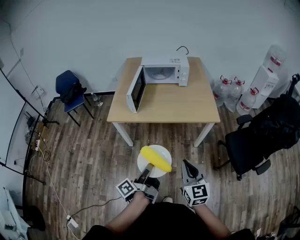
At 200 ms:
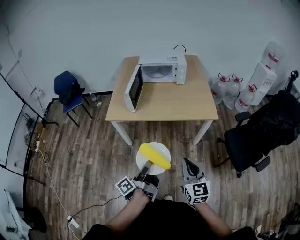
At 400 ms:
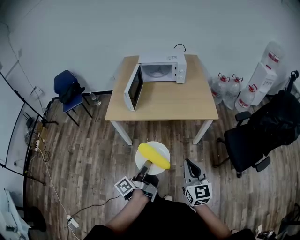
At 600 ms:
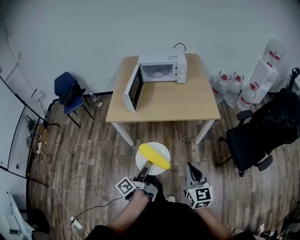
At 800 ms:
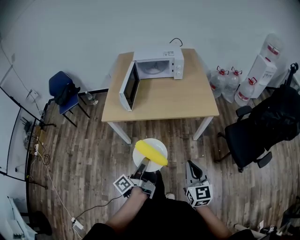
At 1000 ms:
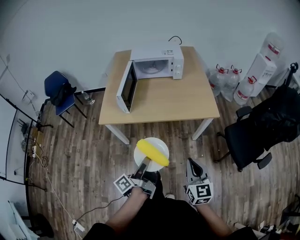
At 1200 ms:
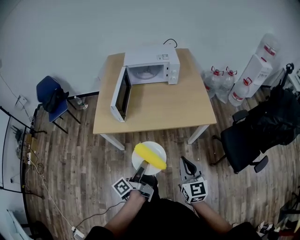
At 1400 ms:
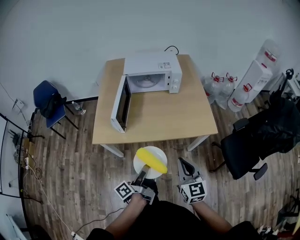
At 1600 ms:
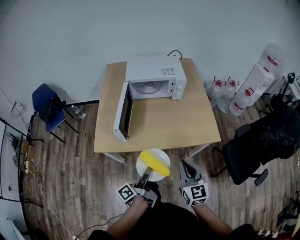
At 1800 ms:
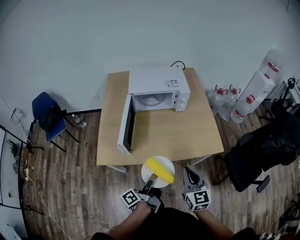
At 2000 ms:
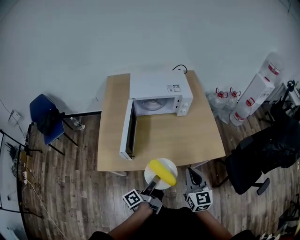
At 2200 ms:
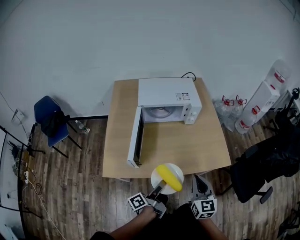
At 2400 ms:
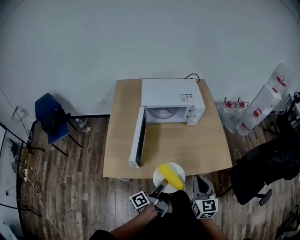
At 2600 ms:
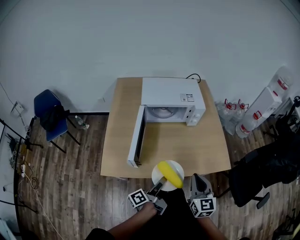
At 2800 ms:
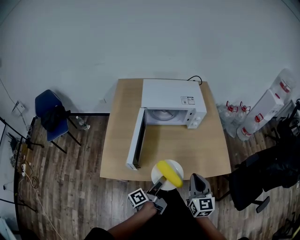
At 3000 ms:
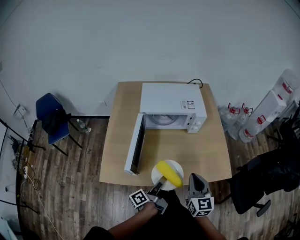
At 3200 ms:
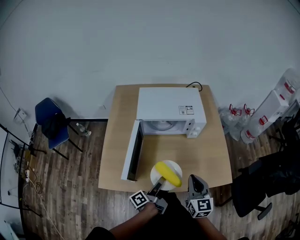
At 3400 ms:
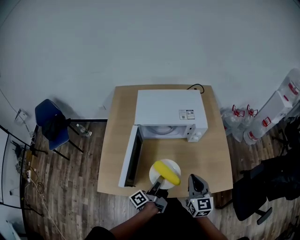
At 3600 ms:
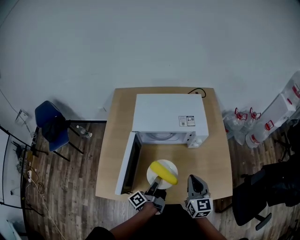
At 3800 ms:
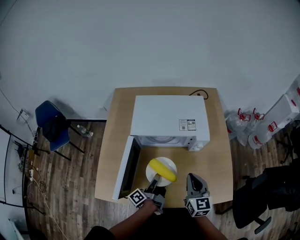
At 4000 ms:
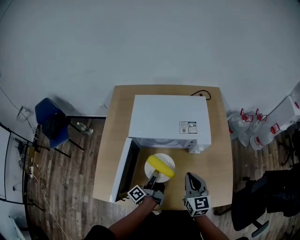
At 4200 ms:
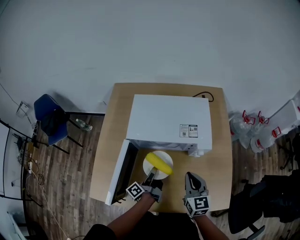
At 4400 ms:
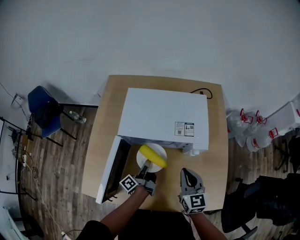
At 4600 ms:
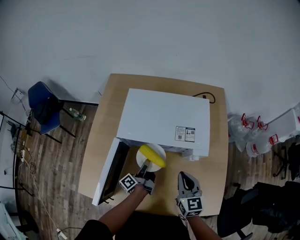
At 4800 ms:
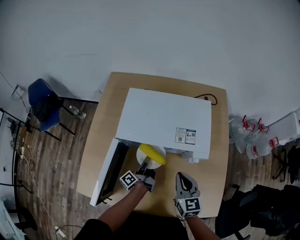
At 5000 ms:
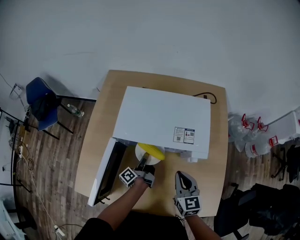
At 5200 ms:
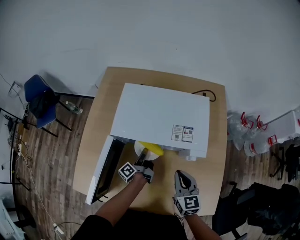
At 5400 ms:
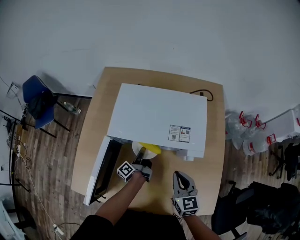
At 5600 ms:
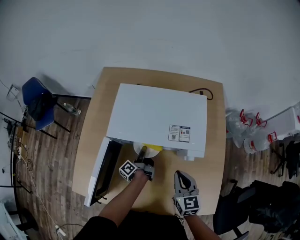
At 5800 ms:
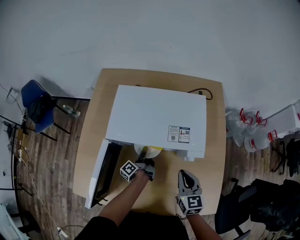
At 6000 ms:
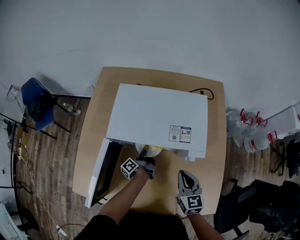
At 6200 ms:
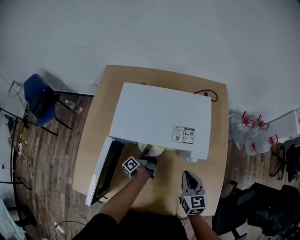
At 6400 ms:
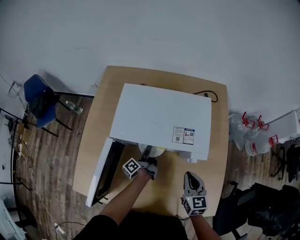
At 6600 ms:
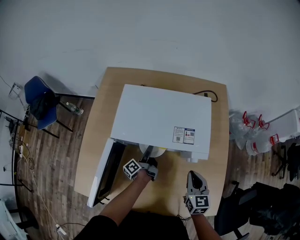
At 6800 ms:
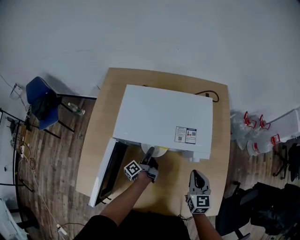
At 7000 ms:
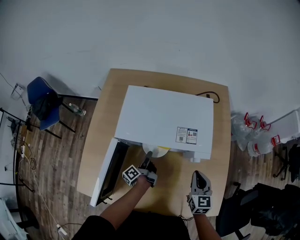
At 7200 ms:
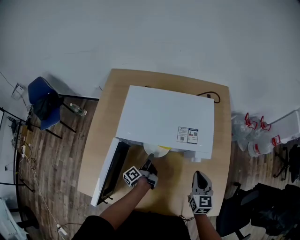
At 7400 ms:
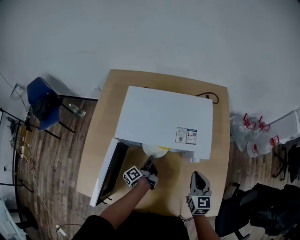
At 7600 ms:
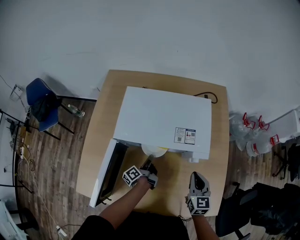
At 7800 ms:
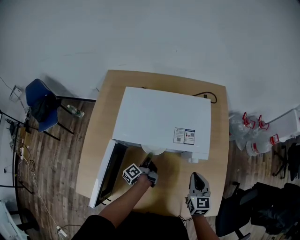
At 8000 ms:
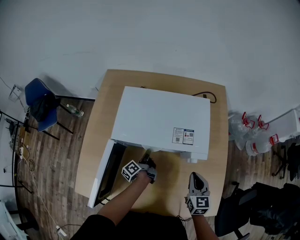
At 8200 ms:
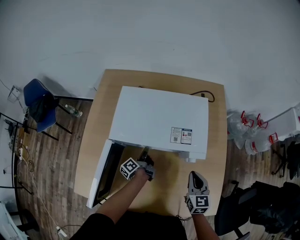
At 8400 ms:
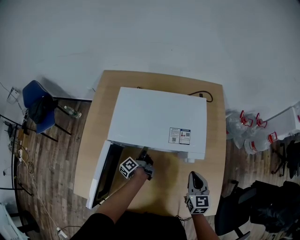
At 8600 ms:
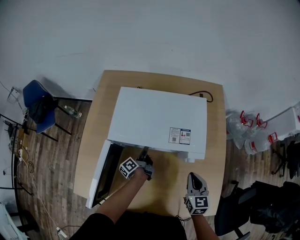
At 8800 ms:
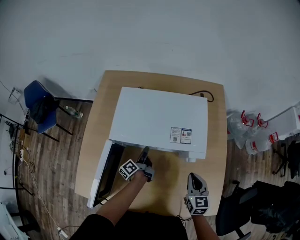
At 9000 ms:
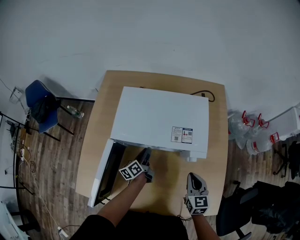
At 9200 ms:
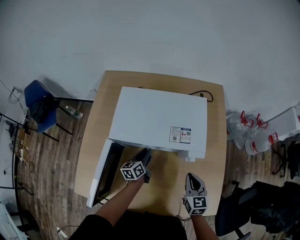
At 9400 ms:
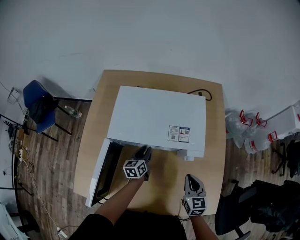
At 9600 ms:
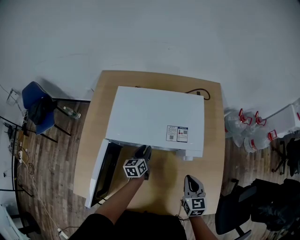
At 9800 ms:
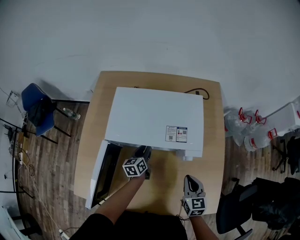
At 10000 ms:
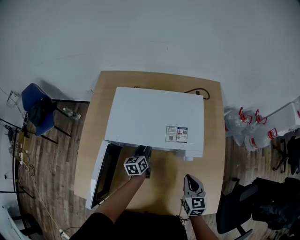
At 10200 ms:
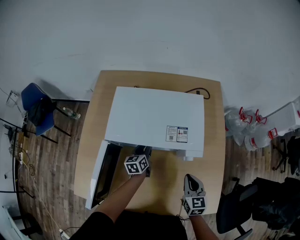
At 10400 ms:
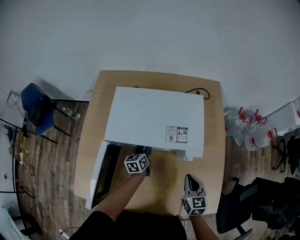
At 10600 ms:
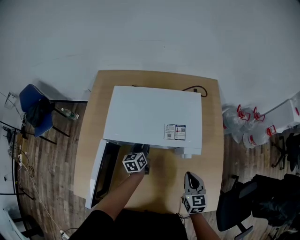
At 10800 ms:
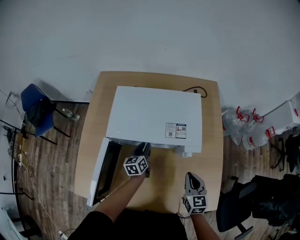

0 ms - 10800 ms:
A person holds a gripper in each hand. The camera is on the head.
0 ms - 1600 ms: The right gripper moves some 25 cm.
1600 ms - 3000 ms: The right gripper moves about 15 cm.
3000 ms - 4600 ms: The right gripper shifts by roughly 25 cm.
4600 ms - 6200 ms: The right gripper changes place by roughly 5 cm.

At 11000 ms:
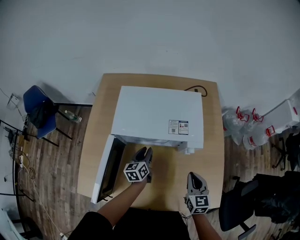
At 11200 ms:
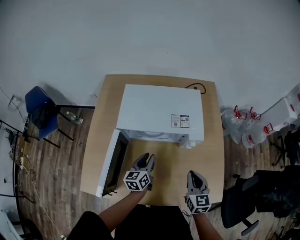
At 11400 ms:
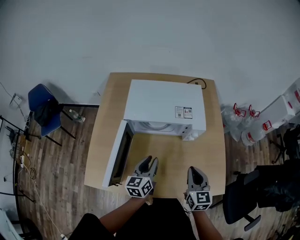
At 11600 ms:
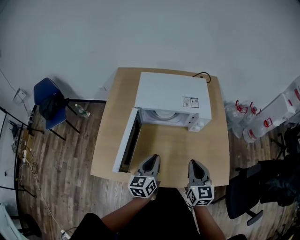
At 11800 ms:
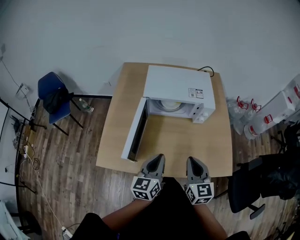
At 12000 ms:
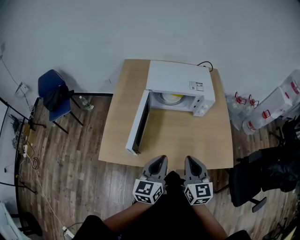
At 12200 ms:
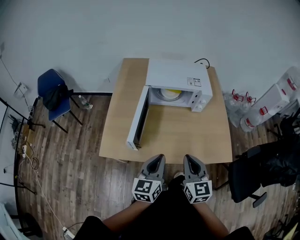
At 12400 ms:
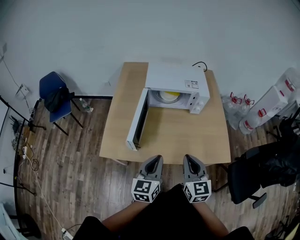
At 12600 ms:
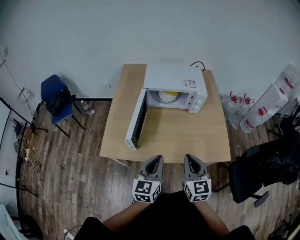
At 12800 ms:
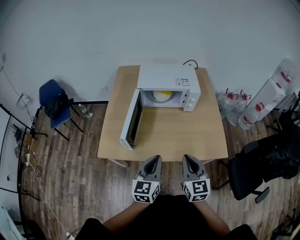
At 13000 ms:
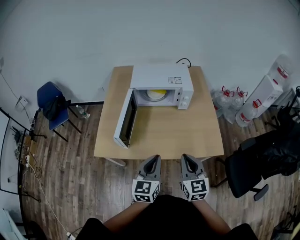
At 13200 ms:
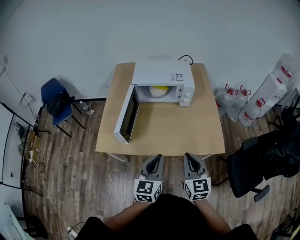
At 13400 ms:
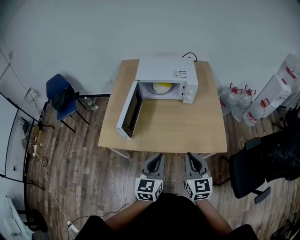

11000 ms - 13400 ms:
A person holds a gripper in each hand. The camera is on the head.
11000 ms - 12200 ms: The right gripper changes place by roughly 35 cm.
12200 ms - 13400 ms: The right gripper shifts by approximately 15 cm.

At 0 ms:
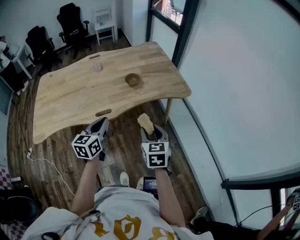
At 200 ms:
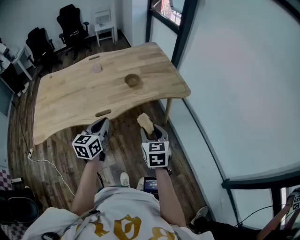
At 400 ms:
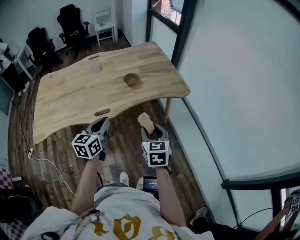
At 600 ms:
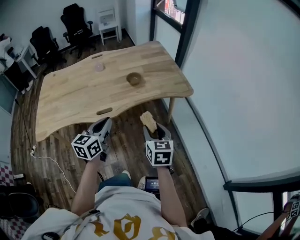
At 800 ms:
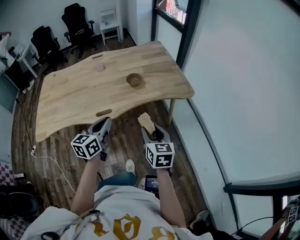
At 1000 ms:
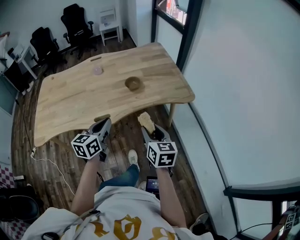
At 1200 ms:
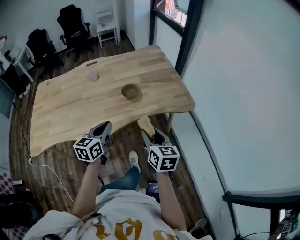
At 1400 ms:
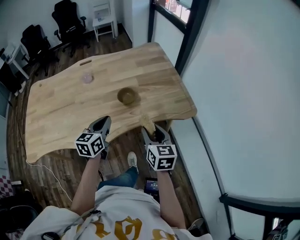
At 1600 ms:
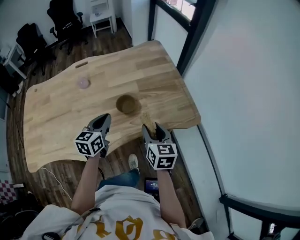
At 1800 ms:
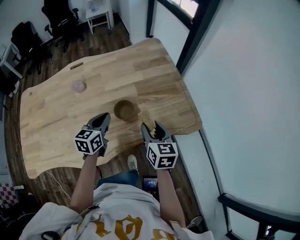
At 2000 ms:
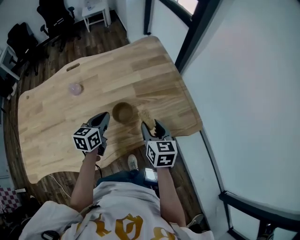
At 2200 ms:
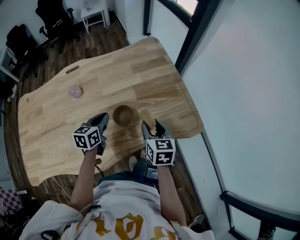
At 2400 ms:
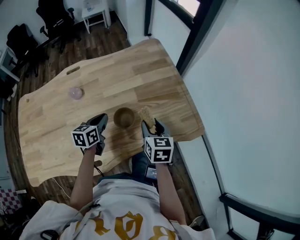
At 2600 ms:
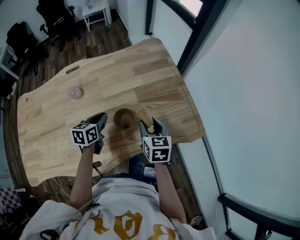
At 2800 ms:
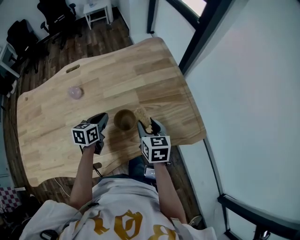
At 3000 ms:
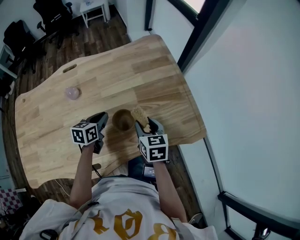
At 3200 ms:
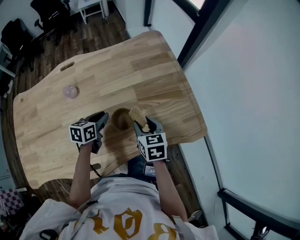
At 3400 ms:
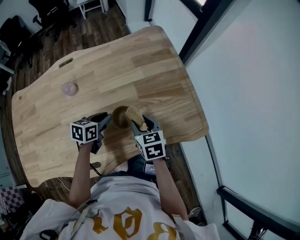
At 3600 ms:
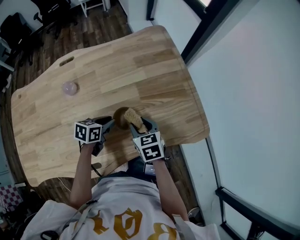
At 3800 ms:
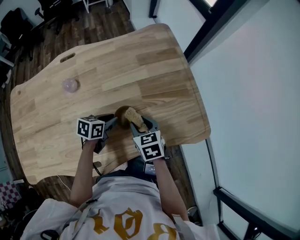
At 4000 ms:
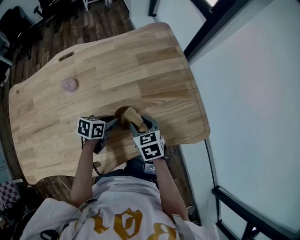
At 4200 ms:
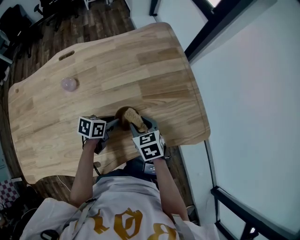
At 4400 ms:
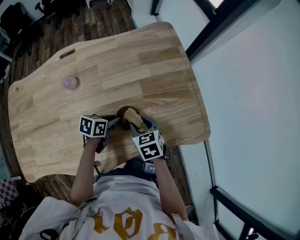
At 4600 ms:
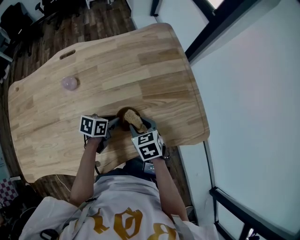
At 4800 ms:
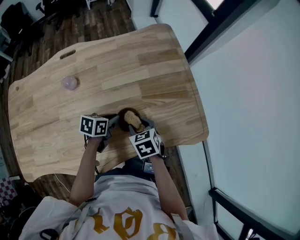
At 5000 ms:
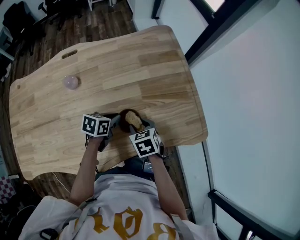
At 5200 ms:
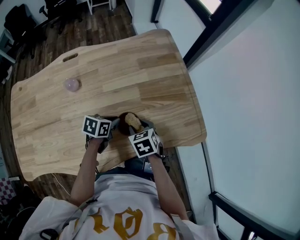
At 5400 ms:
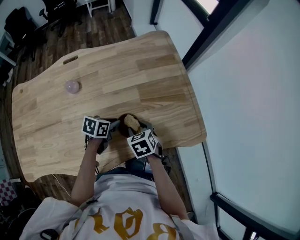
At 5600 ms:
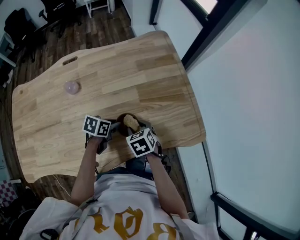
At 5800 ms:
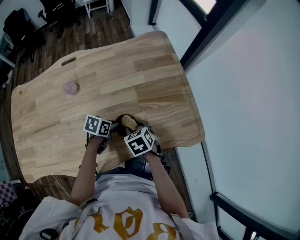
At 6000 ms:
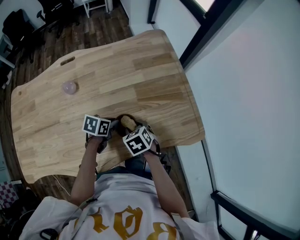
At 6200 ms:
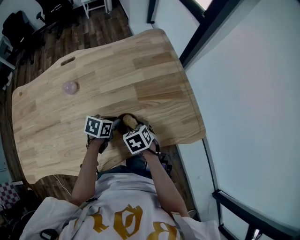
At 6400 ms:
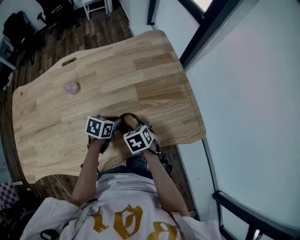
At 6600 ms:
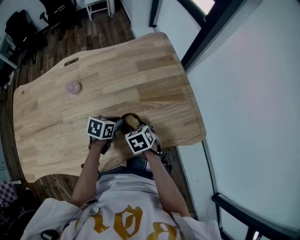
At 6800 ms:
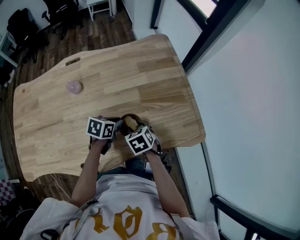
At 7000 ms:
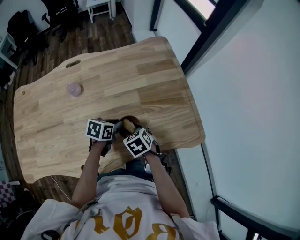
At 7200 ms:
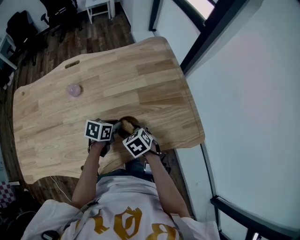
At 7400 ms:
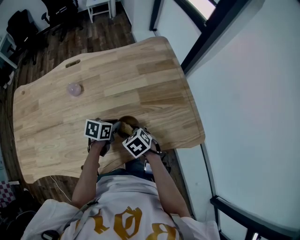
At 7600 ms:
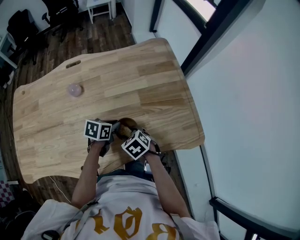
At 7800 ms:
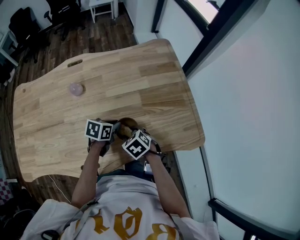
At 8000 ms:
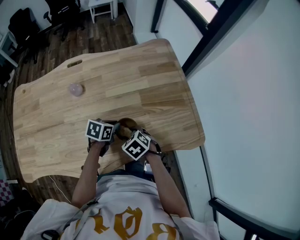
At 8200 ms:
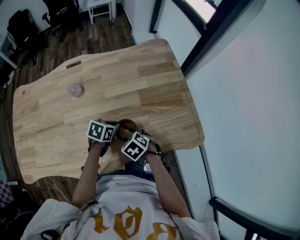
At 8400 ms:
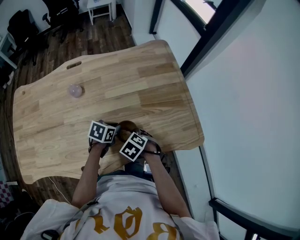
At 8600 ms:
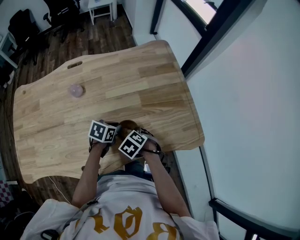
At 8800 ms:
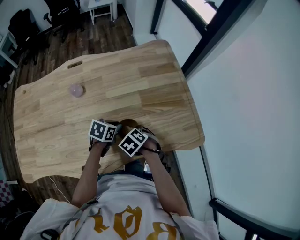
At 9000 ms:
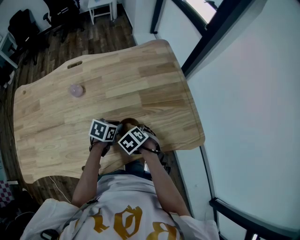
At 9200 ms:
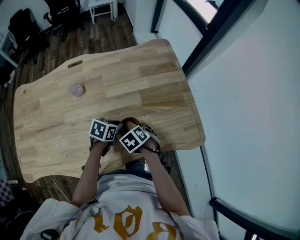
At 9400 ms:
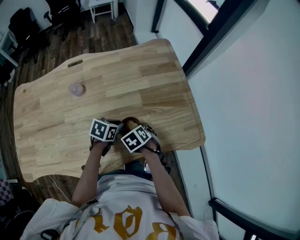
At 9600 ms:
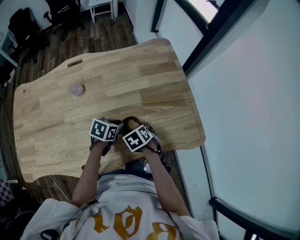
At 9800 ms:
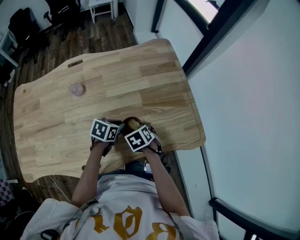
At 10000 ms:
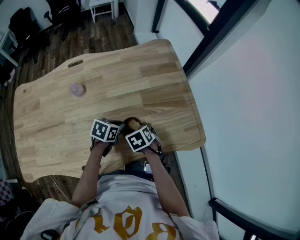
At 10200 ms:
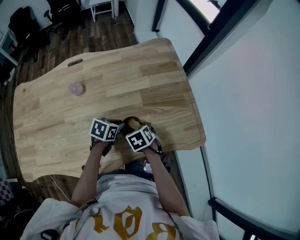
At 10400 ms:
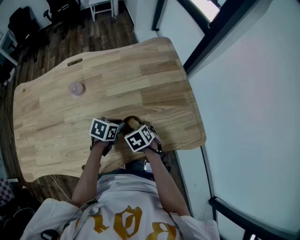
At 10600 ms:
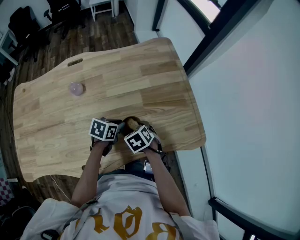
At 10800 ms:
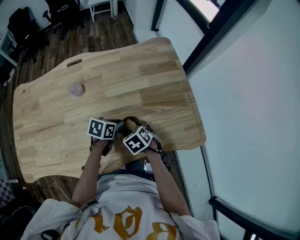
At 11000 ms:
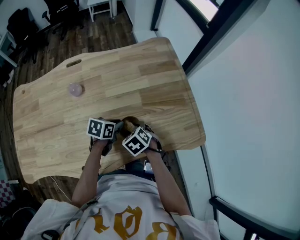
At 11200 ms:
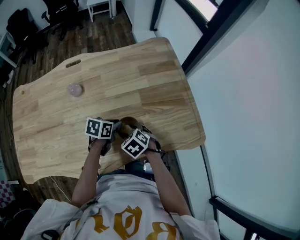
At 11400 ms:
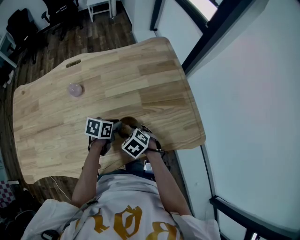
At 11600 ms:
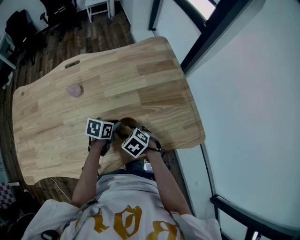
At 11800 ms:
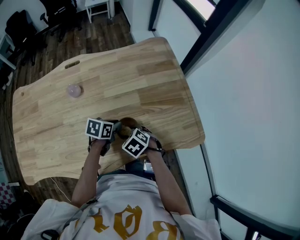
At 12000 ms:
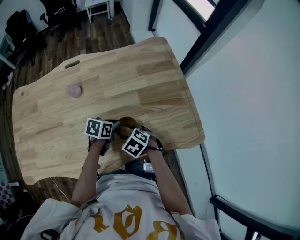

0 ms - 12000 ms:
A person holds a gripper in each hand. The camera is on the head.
0 ms - 1600 ms: Both grippers travel together forward, approximately 30 cm.
1600 ms - 3000 ms: Both grippers travel together forward and downward, about 15 cm.
3000 ms - 4400 ms: The left gripper heads downward, covering some 5 cm, and changes its angle by roughly 20 degrees. The right gripper is displaced downward and to the left by about 10 cm, and changes its angle by some 20 degrees.
4400 ms - 6000 ms: The grippers stay close to where they were, moving slightly.
6000 ms - 7600 ms: The grippers move only a little.
7600 ms - 10400 ms: There are only small adjustments of the grippers.
10400 ms - 12000 ms: The right gripper swivels approximately 20 degrees.
